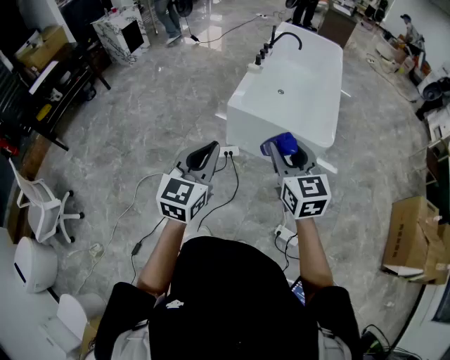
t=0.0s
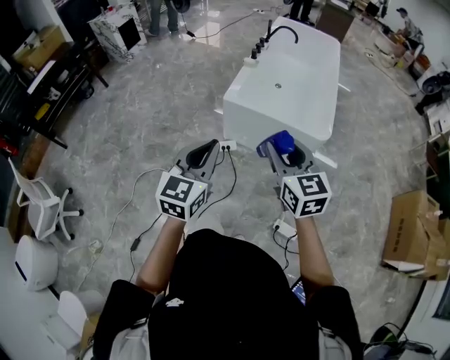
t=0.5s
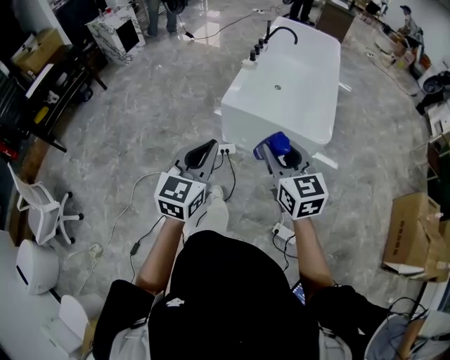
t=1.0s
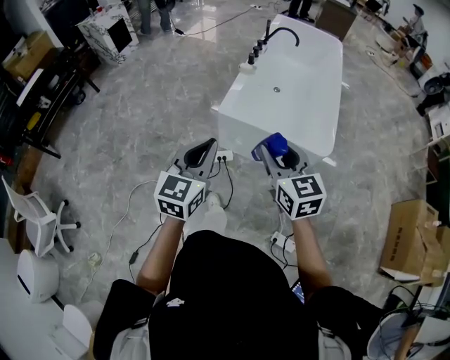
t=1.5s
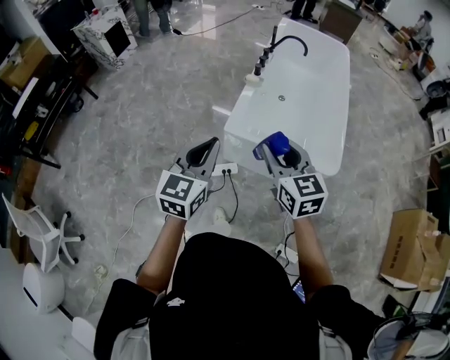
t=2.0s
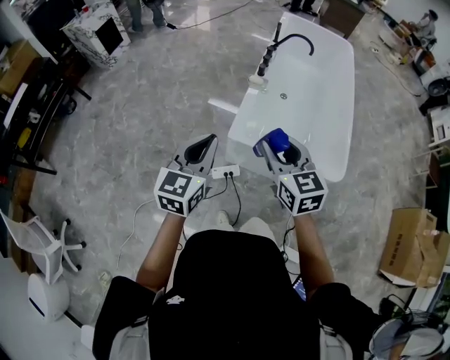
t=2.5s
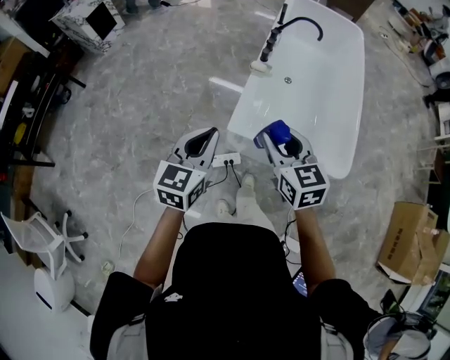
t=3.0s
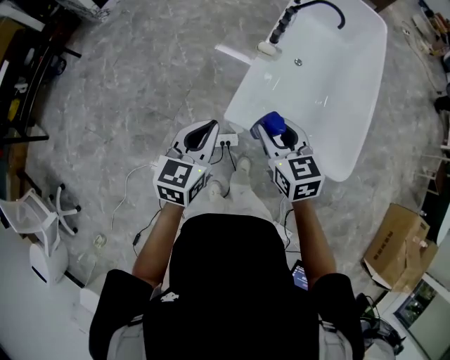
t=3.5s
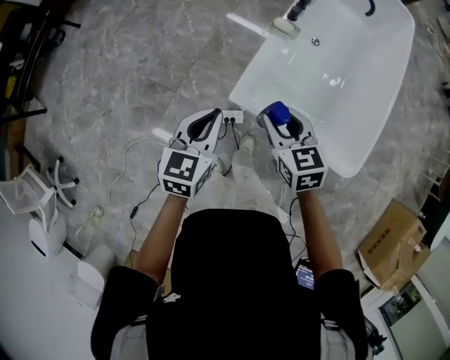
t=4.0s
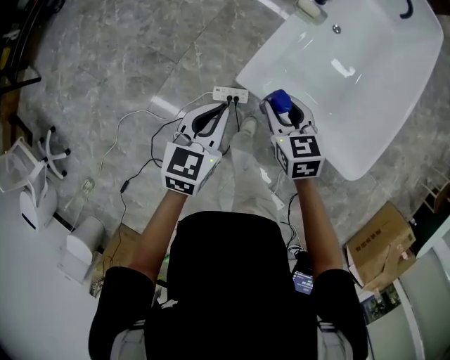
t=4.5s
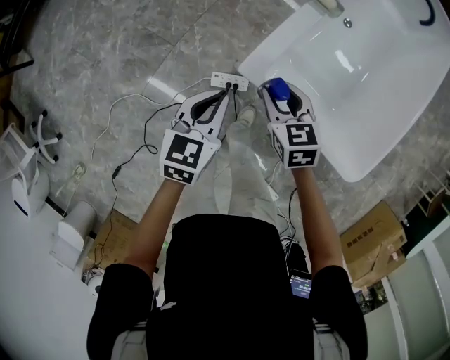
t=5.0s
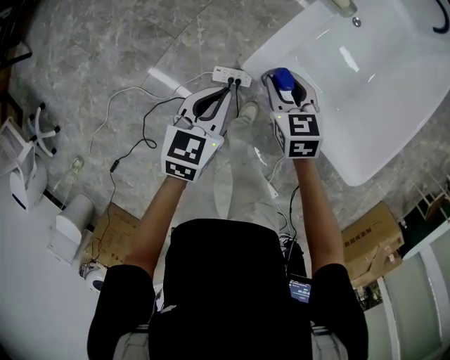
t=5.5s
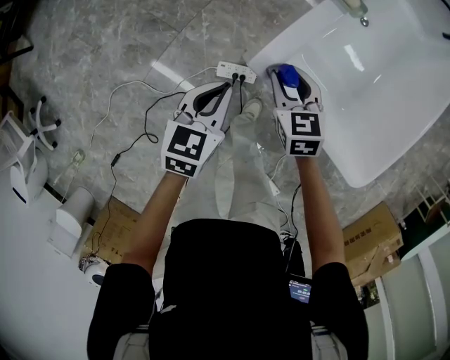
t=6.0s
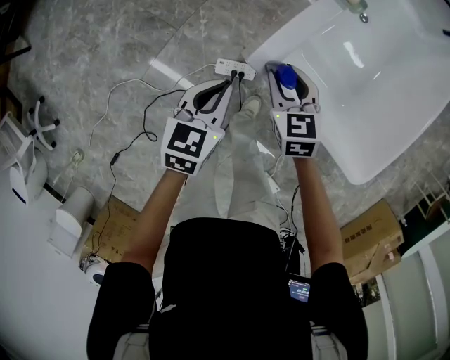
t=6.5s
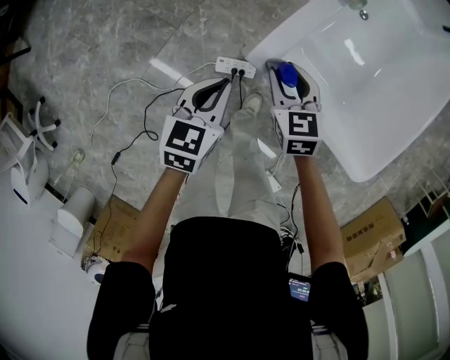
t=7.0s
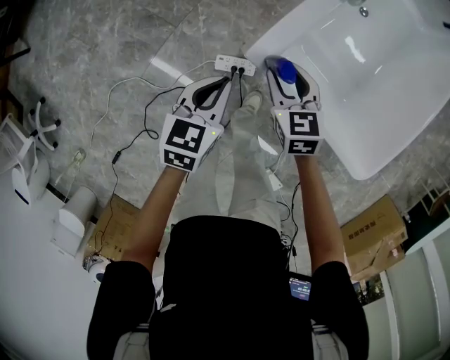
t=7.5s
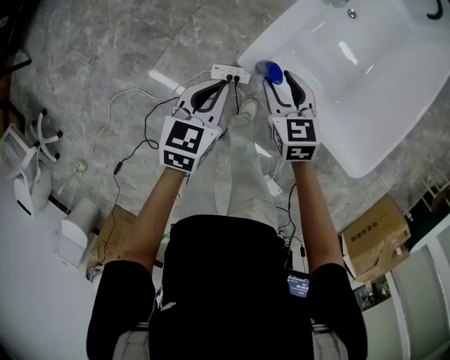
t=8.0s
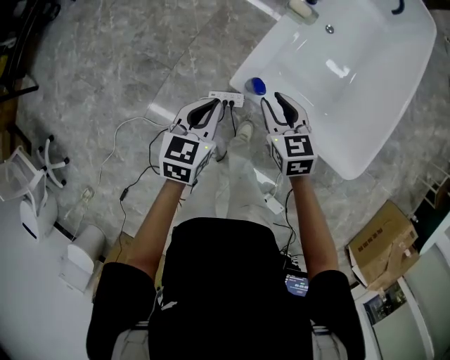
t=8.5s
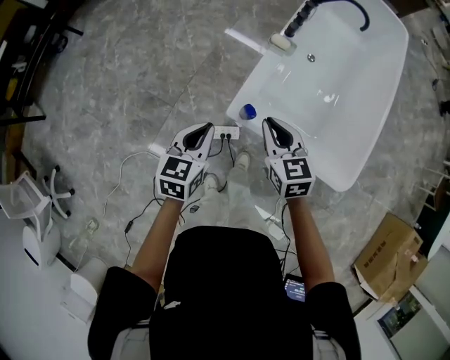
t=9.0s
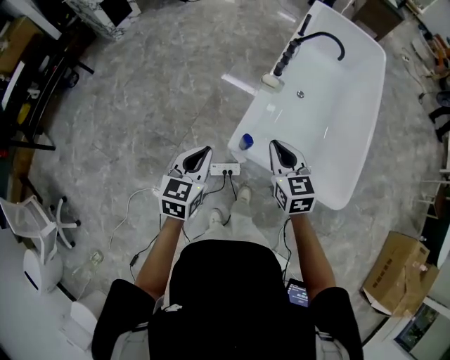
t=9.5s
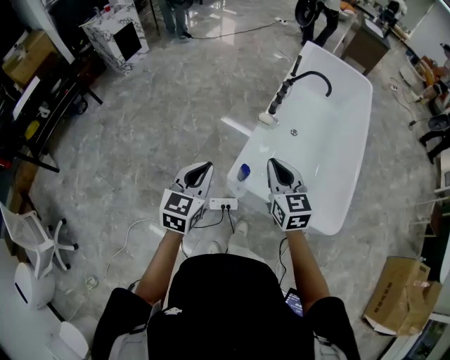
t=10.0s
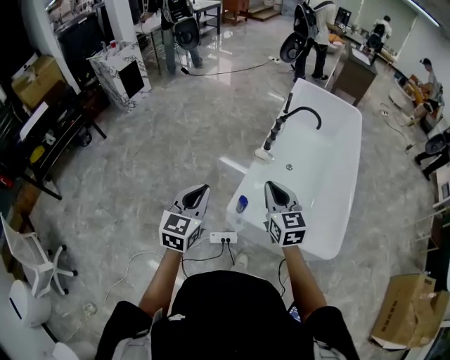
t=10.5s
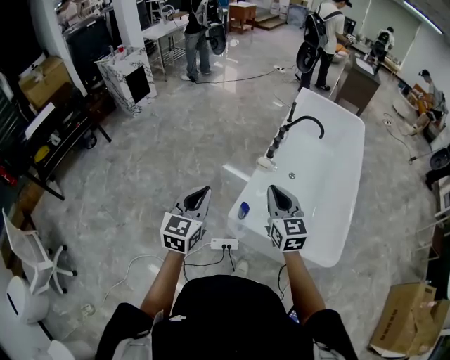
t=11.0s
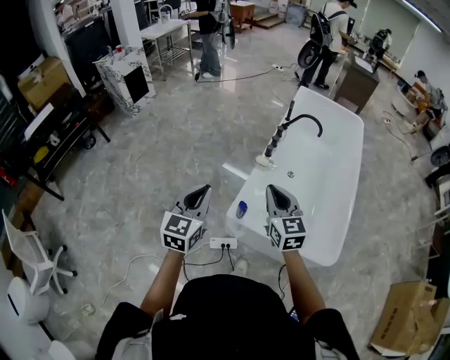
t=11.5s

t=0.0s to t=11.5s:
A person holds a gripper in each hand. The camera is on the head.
t=0.0s to t=2.0s: The two grippers go roughly 30 cm forward.
t=2.0s to t=4.0s: The grippers both shift forward and downward by approximately 35 cm. The right gripper rotates roughly 20 degrees. Meanwhile the left gripper rotates some 20 degrees.
t=4.0s to t=6.0s: The two grippers go roughly 20 cm downward.
t=6.0s to t=7.5s: The grippers move only a little.
t=7.5s to t=9.5s: The two grippers go some 30 cm upward. The right gripper closes.
t=9.5s to t=11.5s: The two grippers go about 15 cm upward.

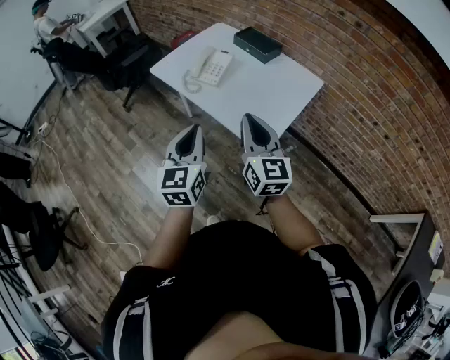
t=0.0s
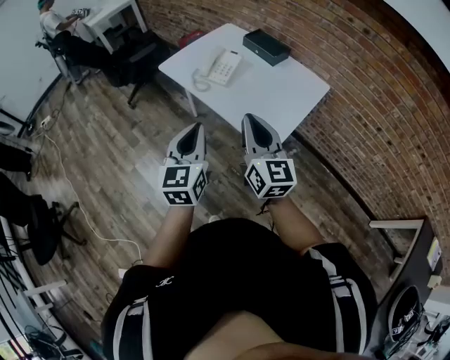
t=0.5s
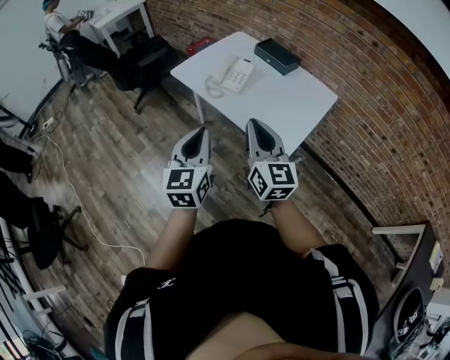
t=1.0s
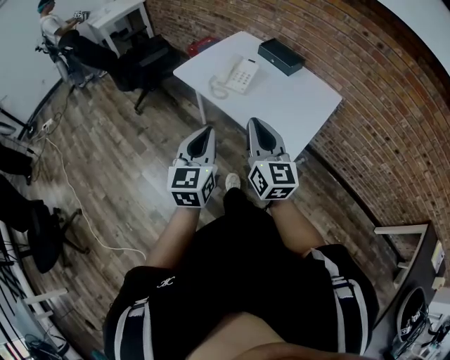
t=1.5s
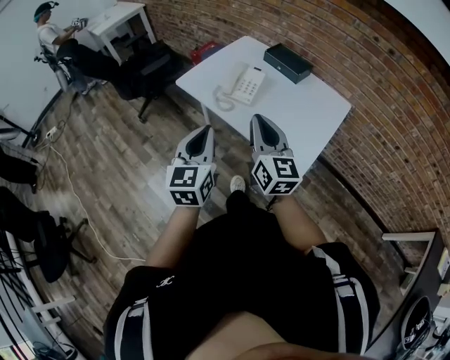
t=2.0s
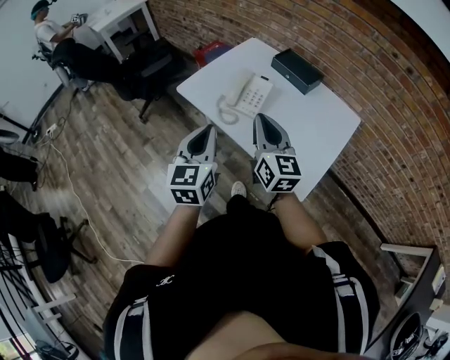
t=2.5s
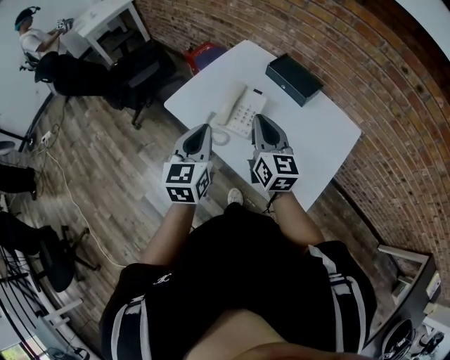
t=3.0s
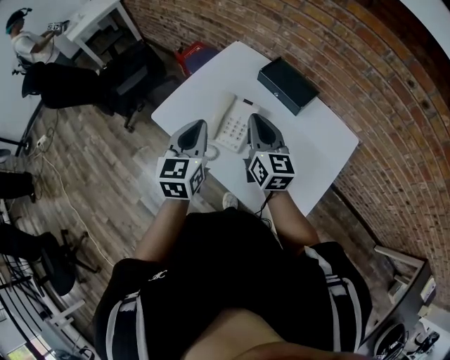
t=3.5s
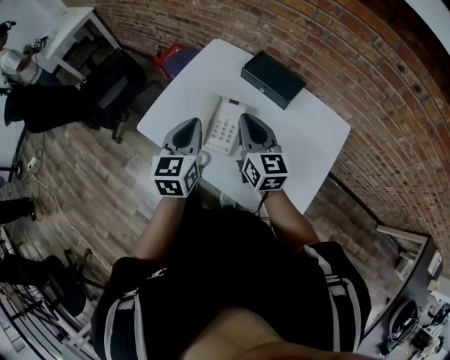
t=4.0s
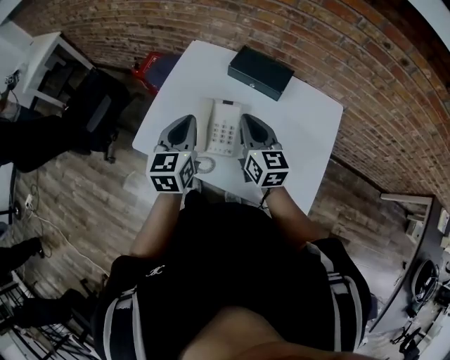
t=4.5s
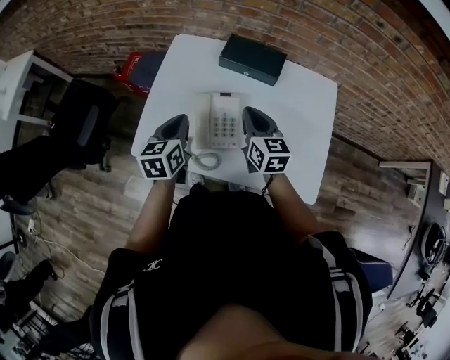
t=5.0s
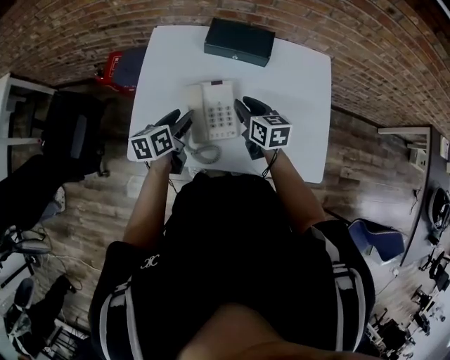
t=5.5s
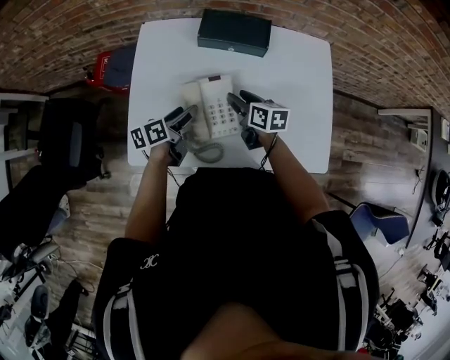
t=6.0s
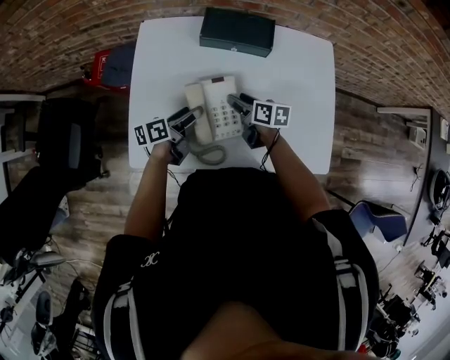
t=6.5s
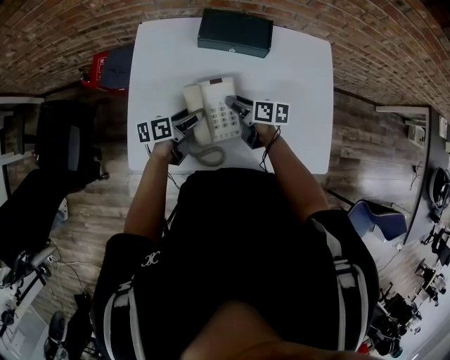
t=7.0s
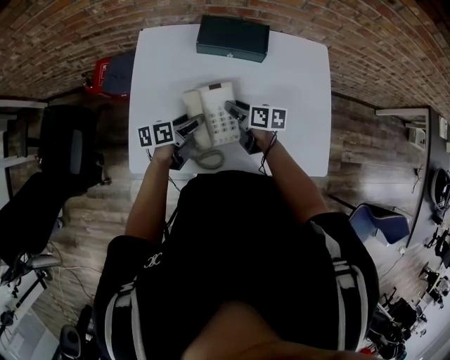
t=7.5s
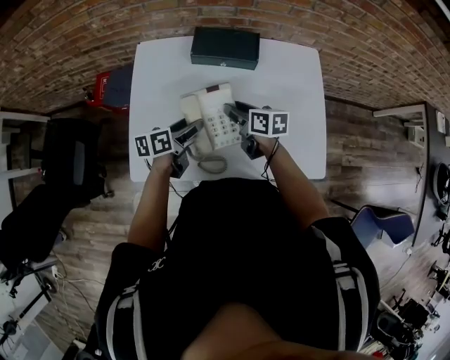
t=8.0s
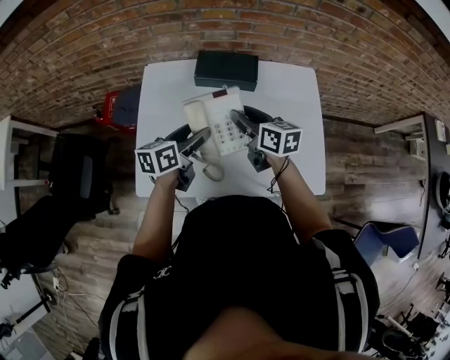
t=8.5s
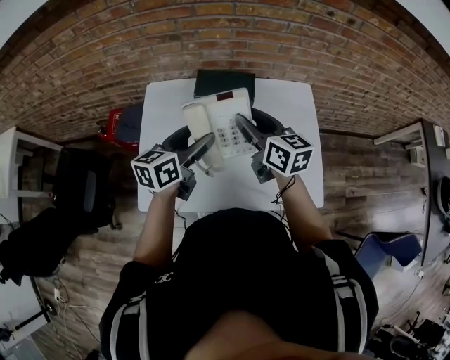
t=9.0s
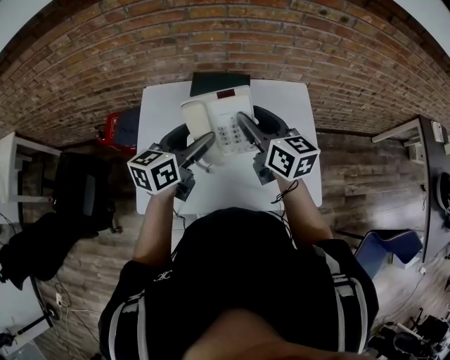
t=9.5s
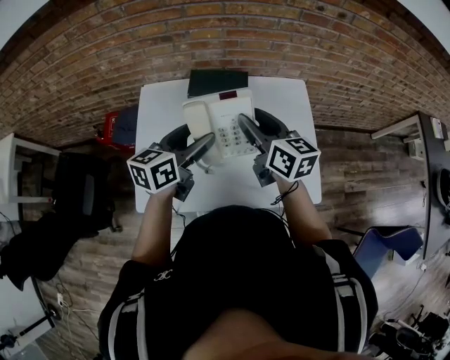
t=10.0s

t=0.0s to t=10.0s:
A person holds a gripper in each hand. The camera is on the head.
t=0.0s to t=2.0s: Both grippers move to the left and forward, some 15 cm.
t=2.0s to t=4.0s: Both grippers move forward, about 35 cm.
t=4.0s to t=6.0s: Both grippers move downward, some 20 cm. The left gripper rotates approximately 60 degrees, and opens up. The right gripper swivels about 40 degrees, and opens.
t=6.0s to t=8.0s: The grippers make only small movements.
t=8.0s to t=10.0s: Both grippers move upward, some 20 cm. The left gripper swivels about 30 degrees, while the right gripper rotates some 30 degrees.

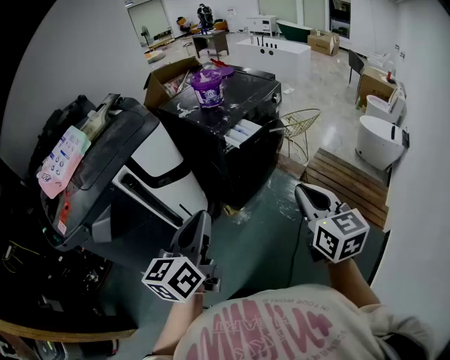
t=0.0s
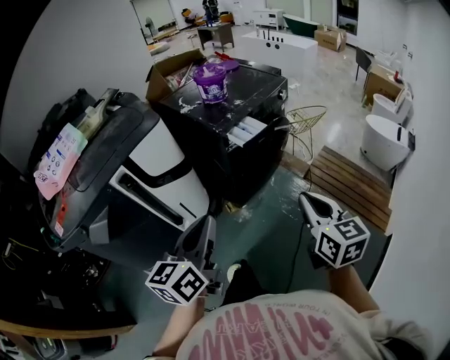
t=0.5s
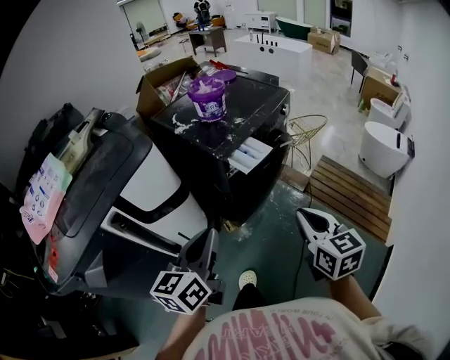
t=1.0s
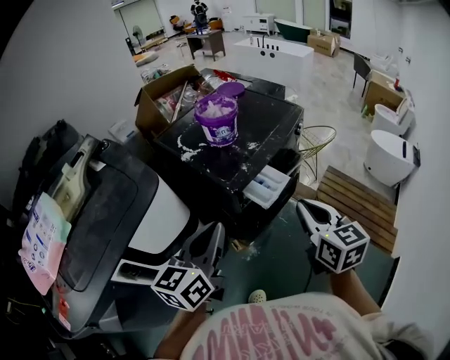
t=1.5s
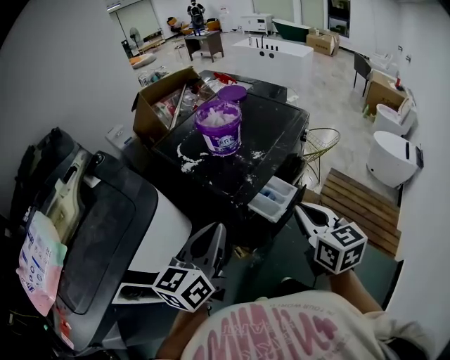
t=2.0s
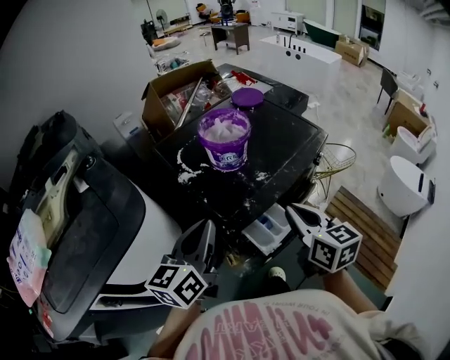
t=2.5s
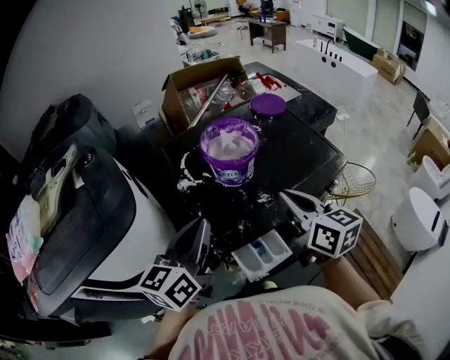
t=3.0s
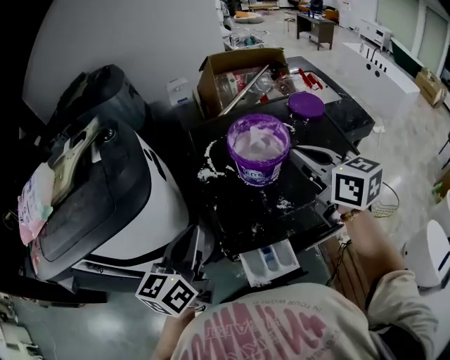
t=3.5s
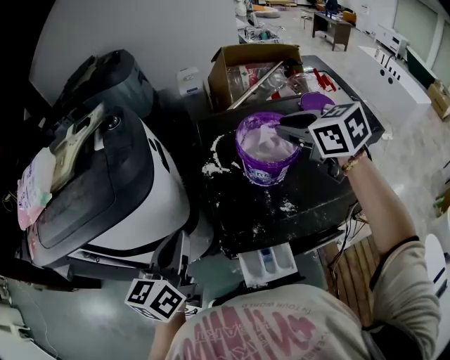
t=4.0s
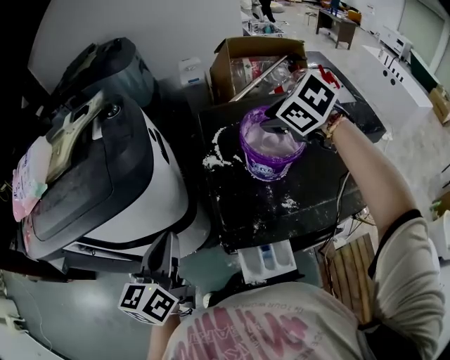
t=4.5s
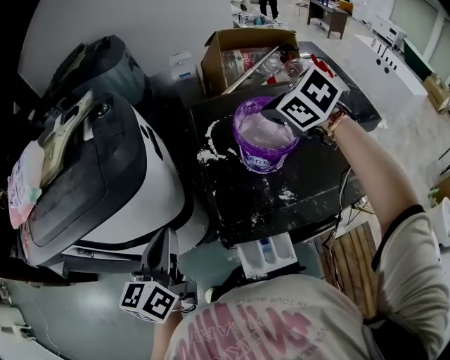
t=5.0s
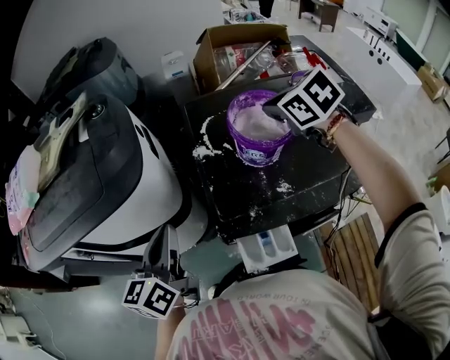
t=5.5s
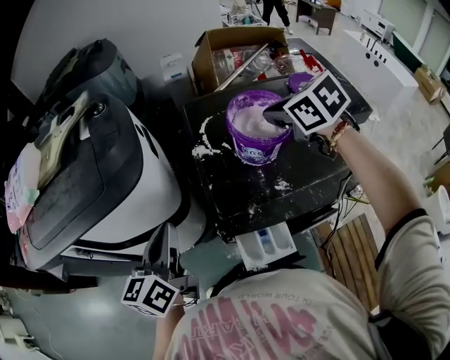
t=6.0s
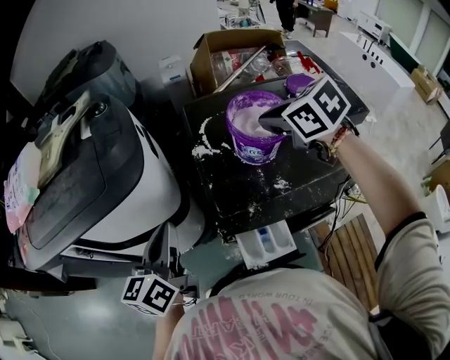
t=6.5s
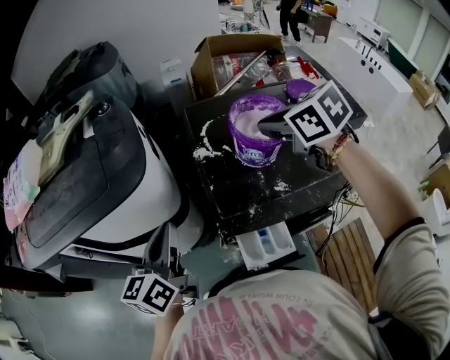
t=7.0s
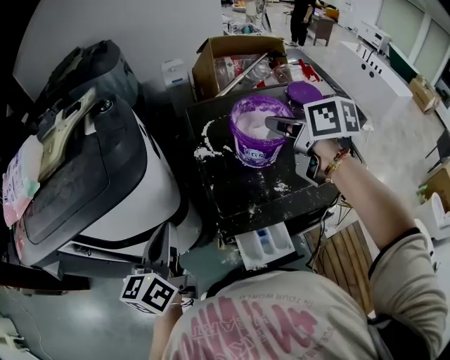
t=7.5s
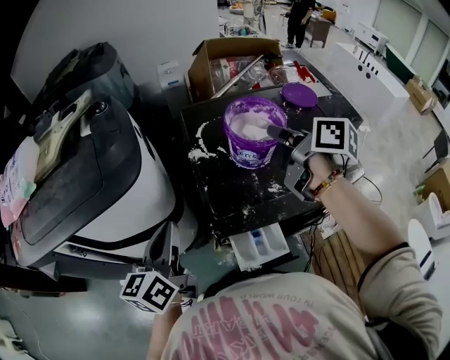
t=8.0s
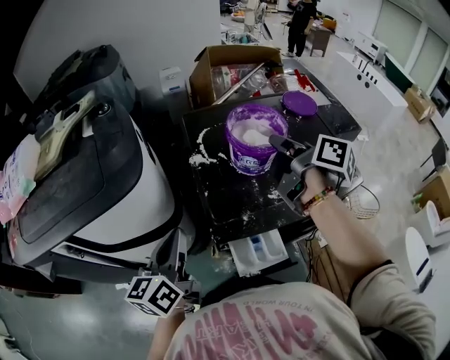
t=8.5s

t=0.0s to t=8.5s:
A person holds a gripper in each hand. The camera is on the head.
t=0.0s to t=2.0s: The grippers both shift forward by about 35 cm.
t=2.0s to t=4.0s: The left gripper ends up approximately 10 cm from where it was, and rotates roughly 50 degrees. Meanwhile the right gripper moves some 40 cm, changes its angle by approximately 60 degrees, and opens its fingers.
t=4.0s to t=6.5s: The right gripper moves about 5 cm.
t=6.5s to t=8.5s: The right gripper twists about 70 degrees clockwise, seen from behind.
